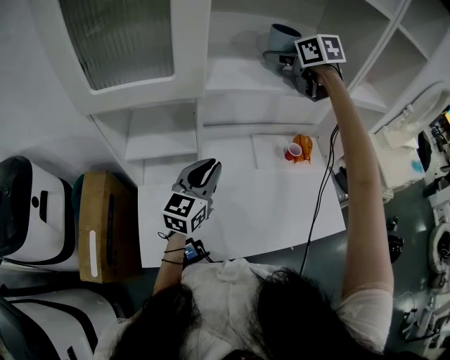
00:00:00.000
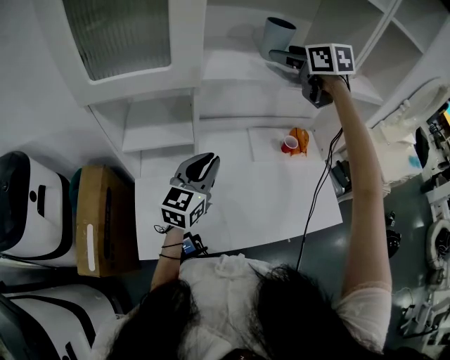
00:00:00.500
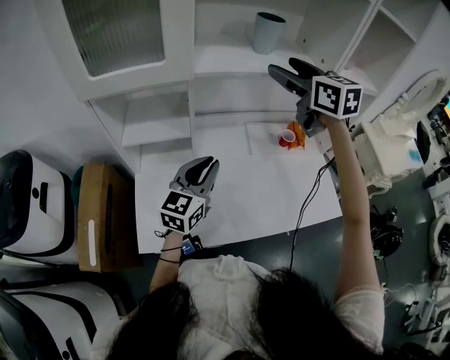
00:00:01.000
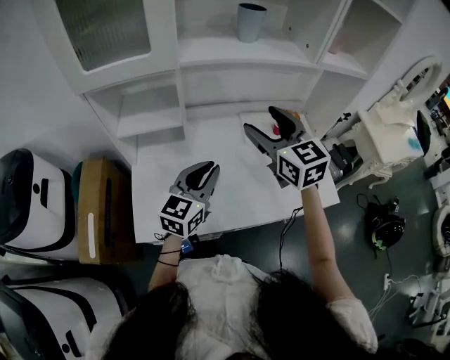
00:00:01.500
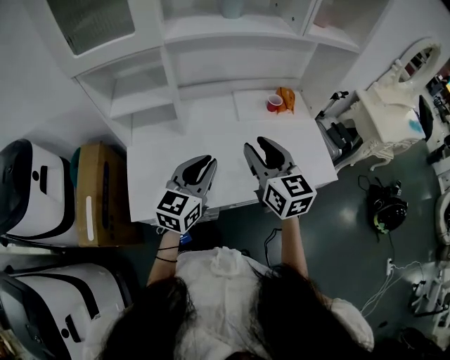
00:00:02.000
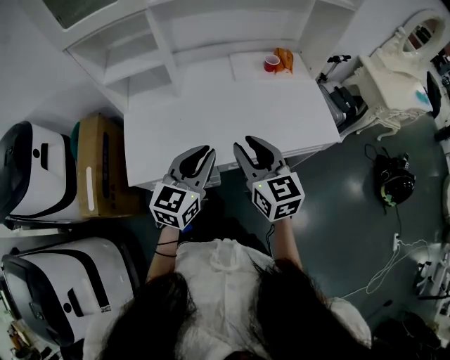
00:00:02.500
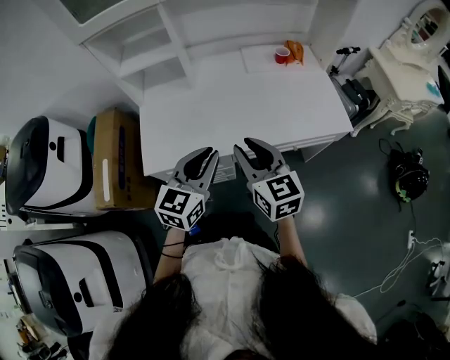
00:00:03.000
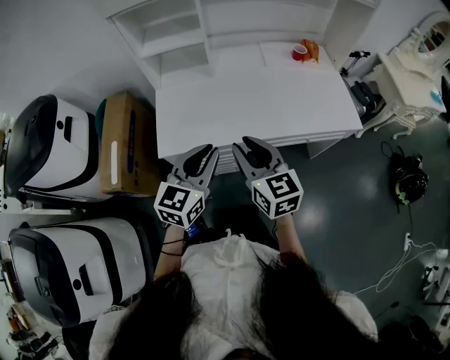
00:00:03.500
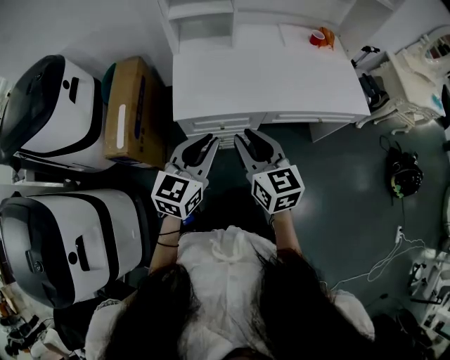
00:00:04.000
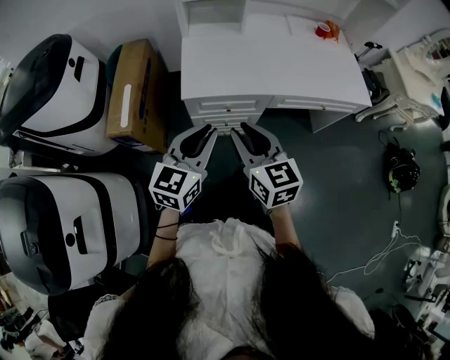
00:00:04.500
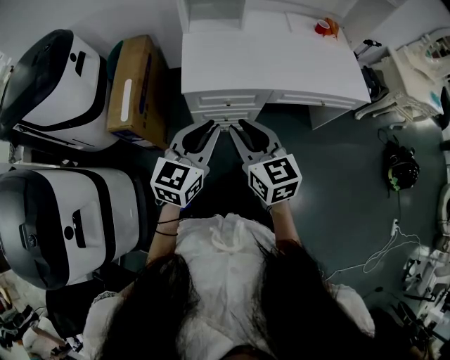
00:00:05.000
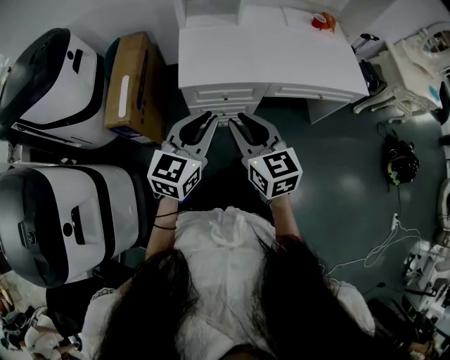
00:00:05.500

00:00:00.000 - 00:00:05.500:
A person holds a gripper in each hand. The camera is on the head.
00:00:00.000 - 00:00:02.000: The left gripper is displaced backward and to the right by approximately 20 cm. Meanwhile the right gripper travels backward and downward by approximately 40 cm, swivels about 30 degrees, and closes up.
00:00:02.000 - 00:00:03.500: The left gripper travels backward by some 20 cm; the right gripper goes some 25 cm backward and to the left.
00:00:03.500 - 00:00:05.500: Both grippers travel together backward and to the left, about 20 cm.

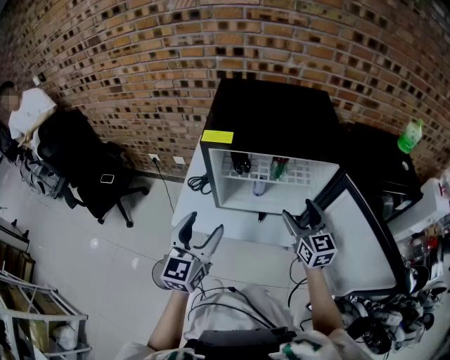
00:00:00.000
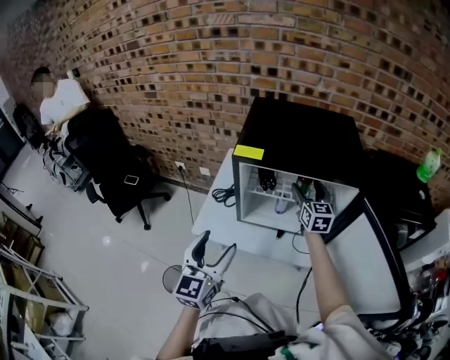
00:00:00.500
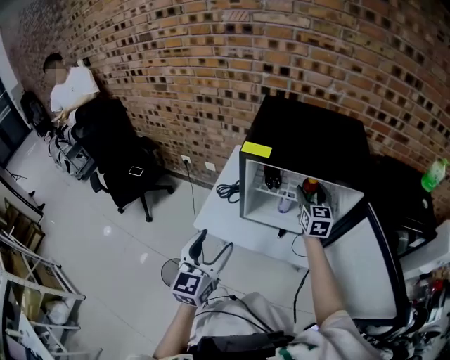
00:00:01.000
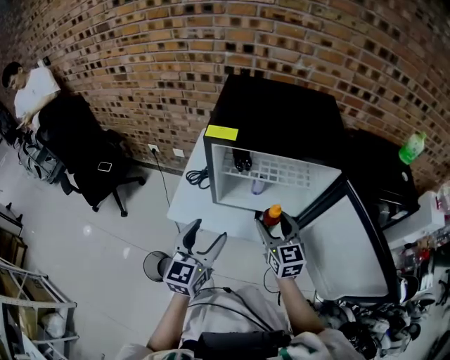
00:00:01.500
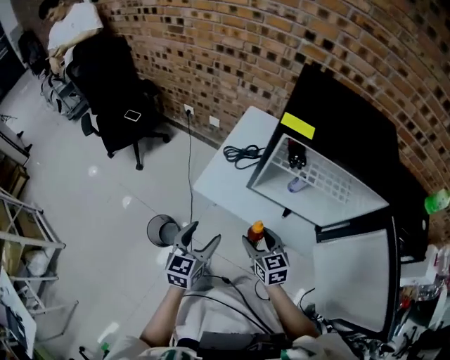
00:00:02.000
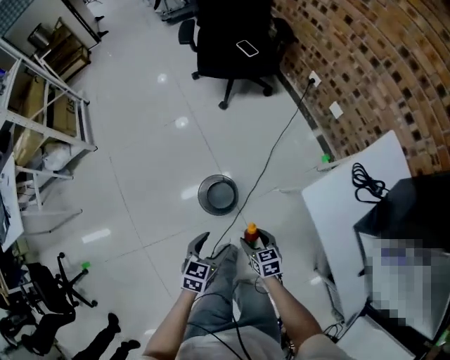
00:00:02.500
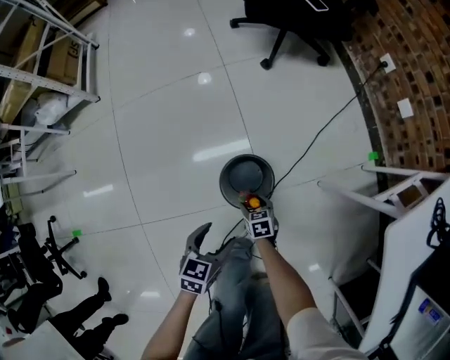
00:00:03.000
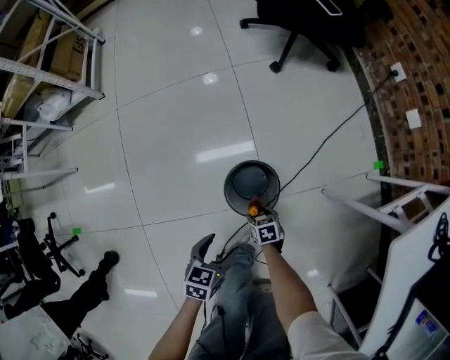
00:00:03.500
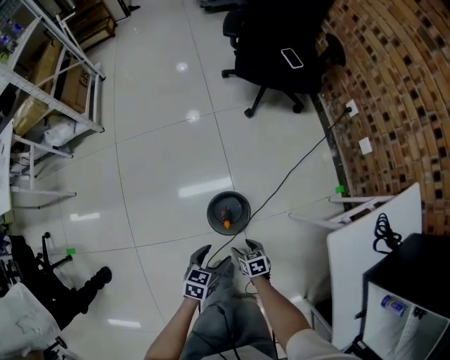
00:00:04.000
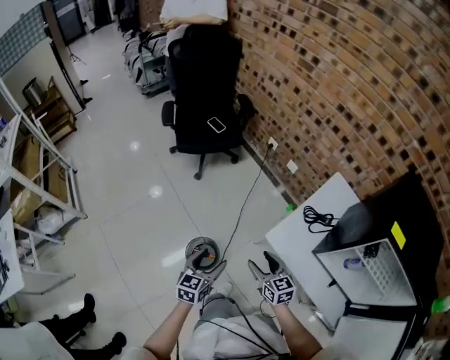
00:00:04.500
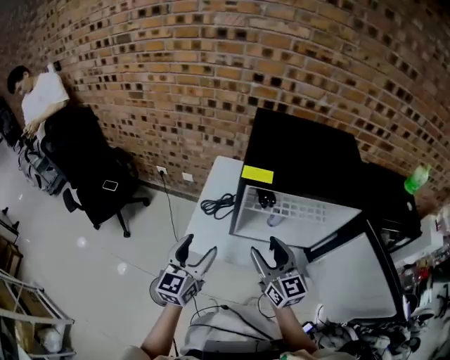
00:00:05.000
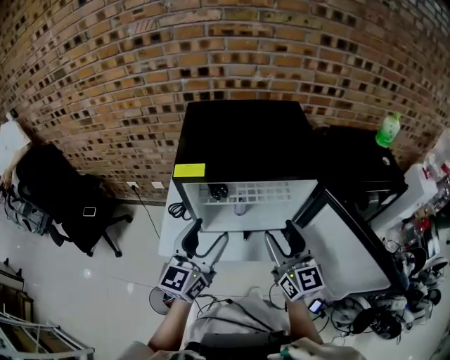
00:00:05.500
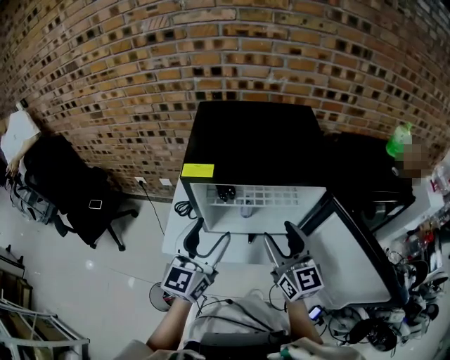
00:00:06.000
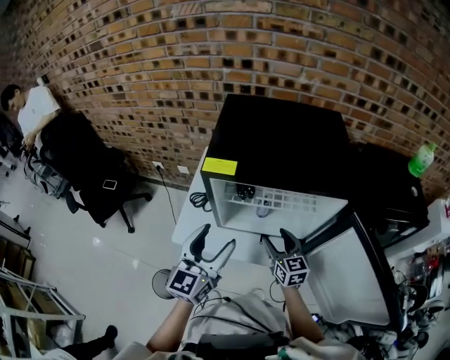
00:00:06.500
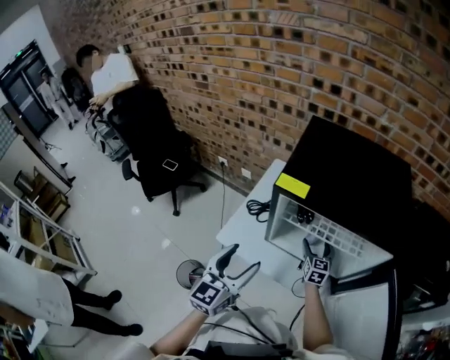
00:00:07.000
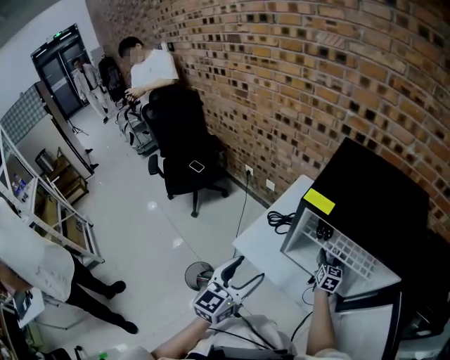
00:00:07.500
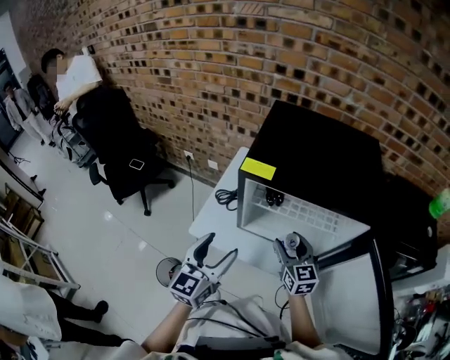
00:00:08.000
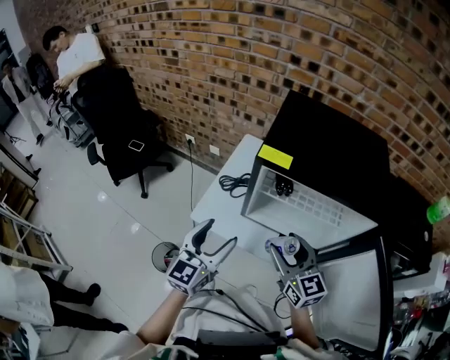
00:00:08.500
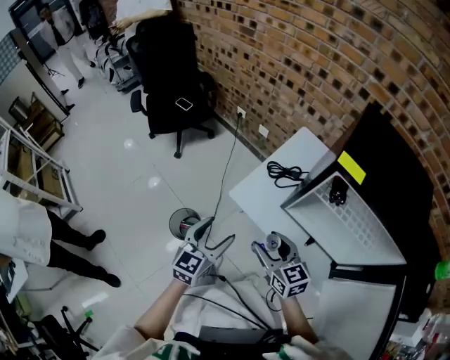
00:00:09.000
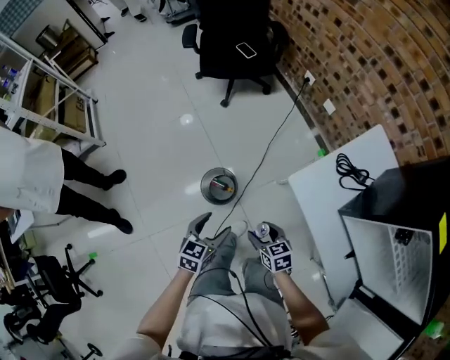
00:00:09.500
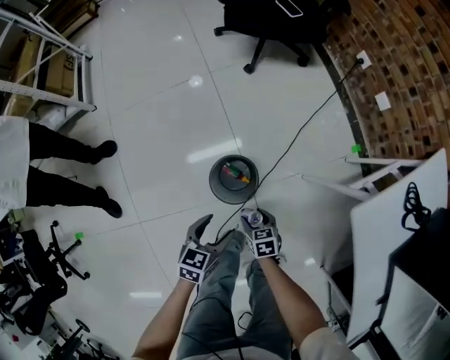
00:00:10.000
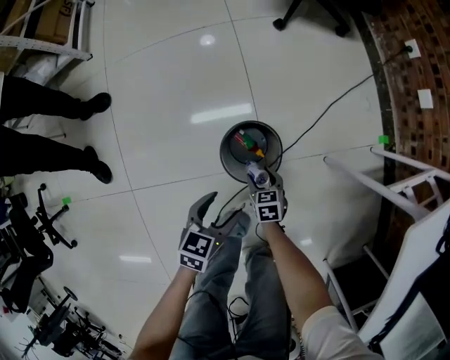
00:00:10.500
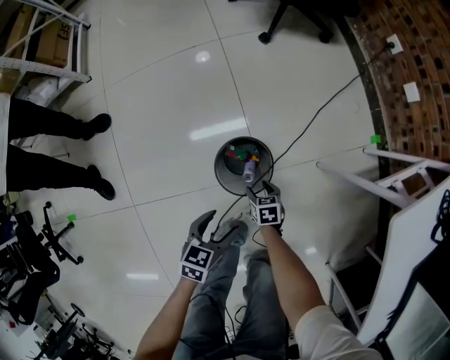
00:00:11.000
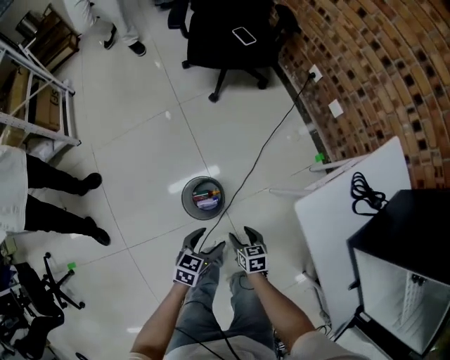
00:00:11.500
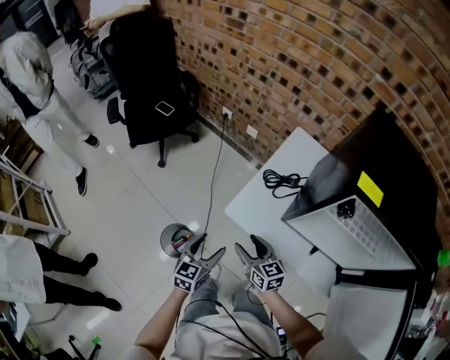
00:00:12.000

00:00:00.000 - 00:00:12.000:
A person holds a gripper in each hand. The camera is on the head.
00:00:00.000 - 00:00:02.000: The right gripper heads to the left, downward and backward, covering about 25 cm, and swivels roughly 30 degrees, while the left gripper shifts some 20 cm downward, to the left and backward, and changes its angle by approximately 20 degrees.
00:00:02.000 - 00:00:04.000: Both grippers travel together downward, some 40 cm. The left gripper swivels some 50 degrees, while the right gripper changes its angle by about 60 degrees.
00:00:04.000 - 00:00:06.000: The pair of grippers is taken approximately 50 cm. The grippers both shift upward by approximately 60 cm. The left gripper points its fingers approximately 50 degrees further upward; the right gripper points its fingers about 60 degrees further upward.
00:00:06.000 - 00:00:08.000: The left gripper heads to the left, covering some 5 cm; the right gripper heads downward, to the left and forward, covering roughly 15 cm, and rotates some 20 degrees.
00:00:08.000 - 00:00:10.000: The two grippers travel together, approximately 50 cm. The grippers both shift downward by about 60 cm. The left gripper angles its fingers downward, by approximately 40 degrees, while the right gripper points its fingers roughly 40 degrees further downward.
00:00:10.000 - 00:00:12.000: The right gripper heads upward, covering approximately 40 cm, and tilts its fingers approximately 30 degrees upward. The left gripper heads upward, covering approximately 25 cm, and changes its angle by about 40 degrees.

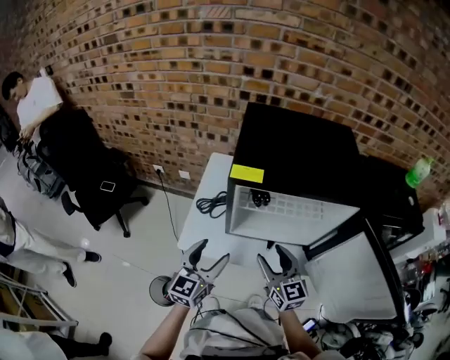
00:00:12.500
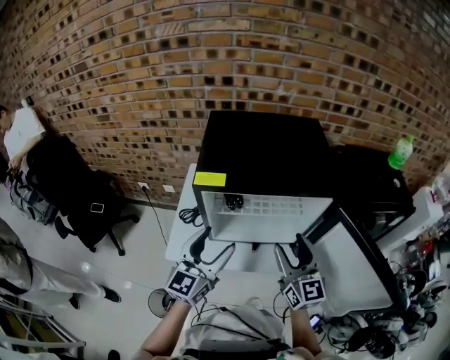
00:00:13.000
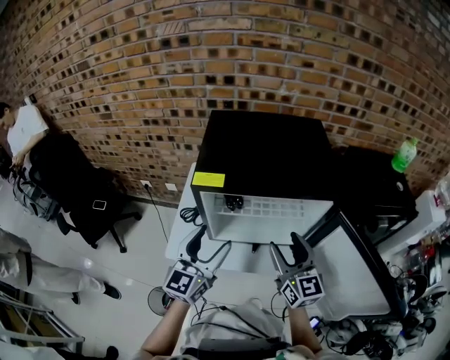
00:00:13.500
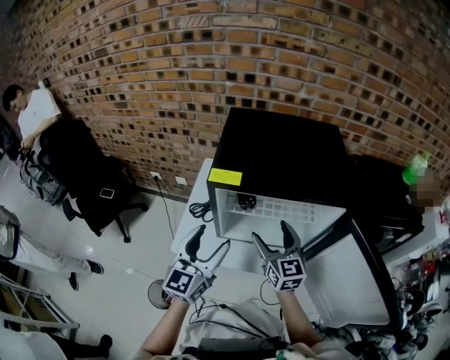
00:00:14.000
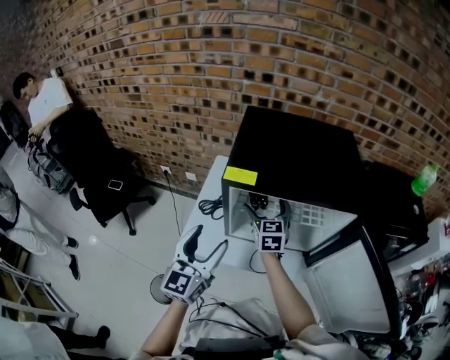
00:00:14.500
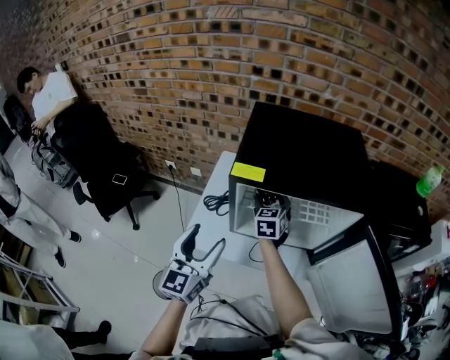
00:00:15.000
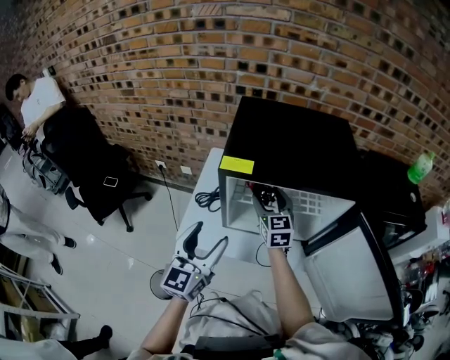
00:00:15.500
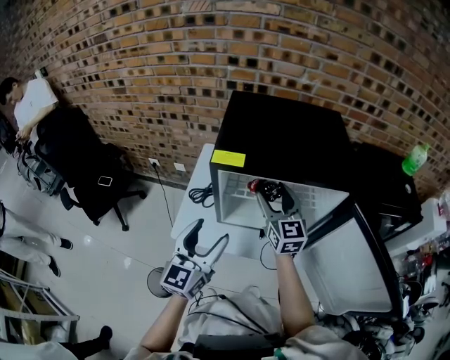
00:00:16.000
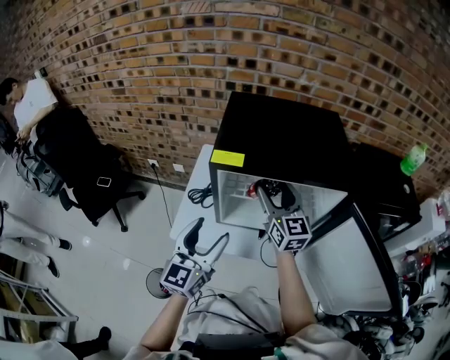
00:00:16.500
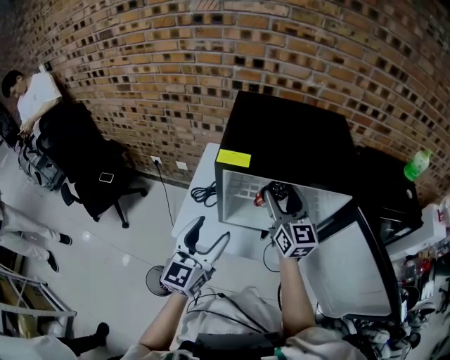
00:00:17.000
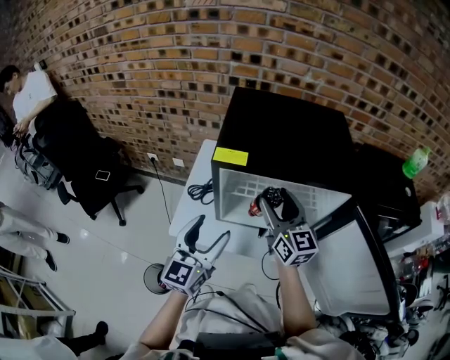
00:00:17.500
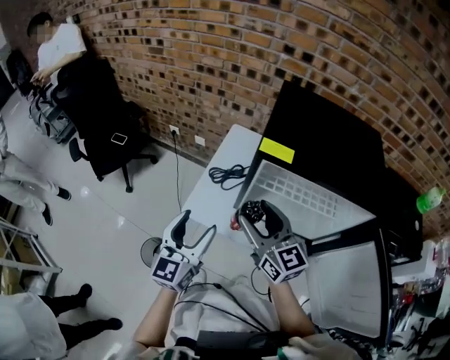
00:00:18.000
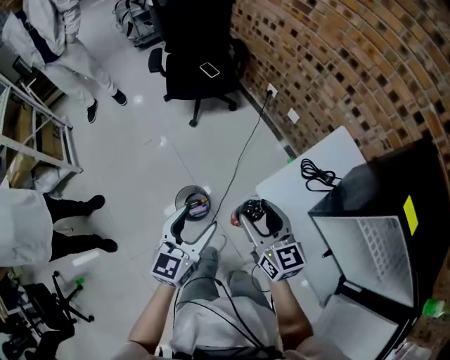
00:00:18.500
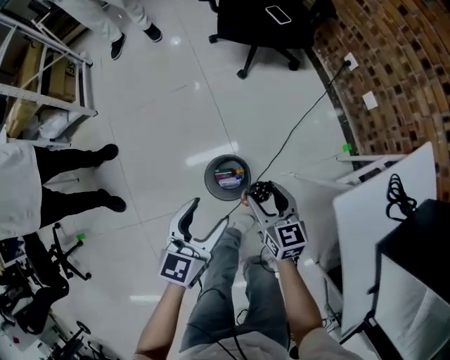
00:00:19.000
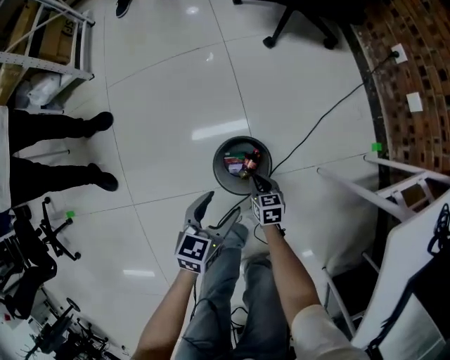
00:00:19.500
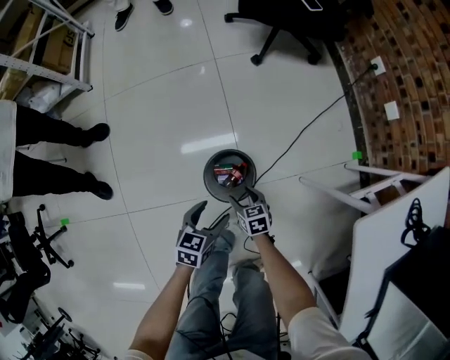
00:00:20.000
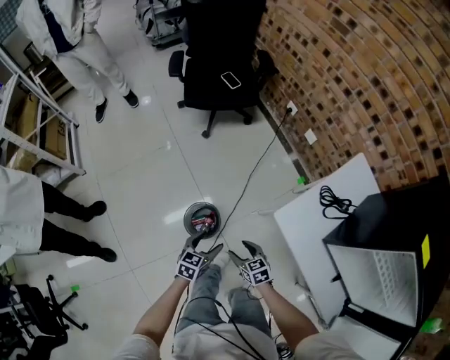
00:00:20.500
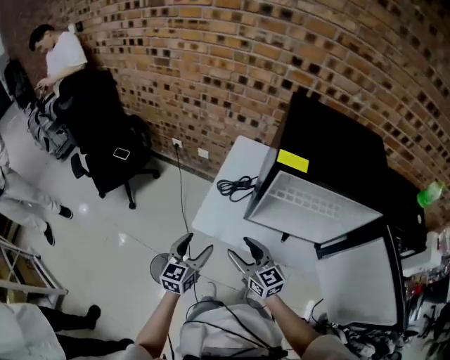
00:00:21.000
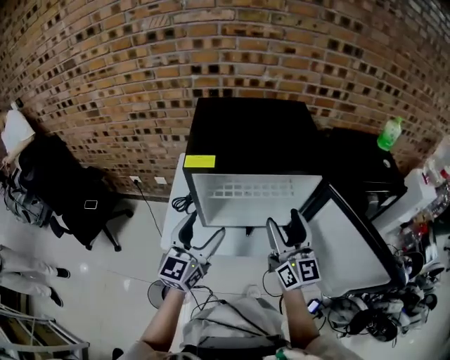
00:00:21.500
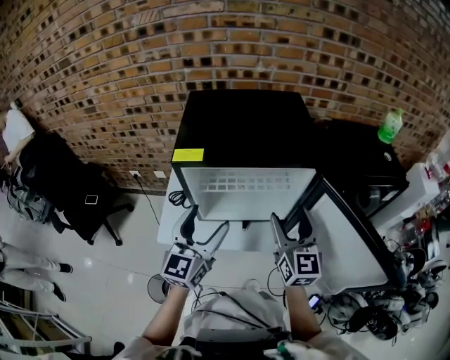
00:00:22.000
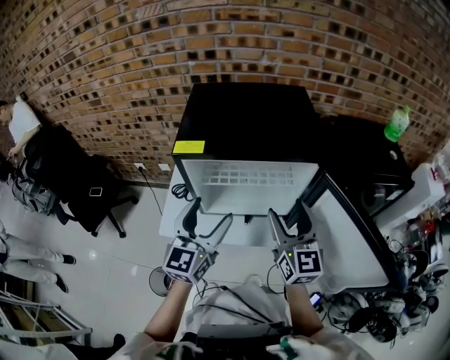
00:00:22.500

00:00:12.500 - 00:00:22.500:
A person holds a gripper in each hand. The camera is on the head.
00:00:12.500 - 00:00:14.500: The right gripper goes roughly 20 cm forward, and opens. Meanwhile the left gripper shifts approximately 10 cm upward.
00:00:14.500 - 00:00:16.500: The right gripper heads upward and to the right, covering about 10 cm, and closes up.
00:00:16.500 - 00:00:18.500: The right gripper moves roughly 40 cm, and rotates some 60 degrees. Meanwhile the left gripper ends up some 35 cm from where it was, and turns by roughly 50 degrees.
00:00:18.500 - 00:00:20.500: Both grippers move downward, roughly 30 cm. The right gripper tips its fingers downward by approximately 30 degrees, and closes, then opens again. The left gripper rotates roughly 30 degrees.
00:00:20.500 - 00:00:22.500: Both grippers are carried about 50 cm. The left gripper moves upward, roughly 50 cm, and tips its fingers upward by approximately 40 degrees. The right gripper tilts its fingers approximately 50 degrees upward.
